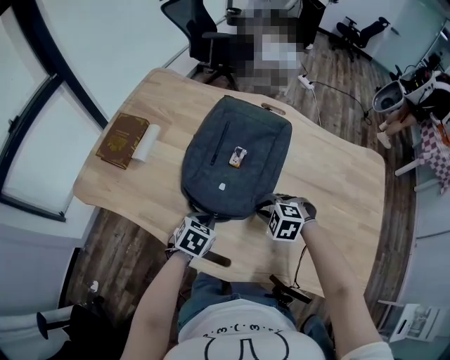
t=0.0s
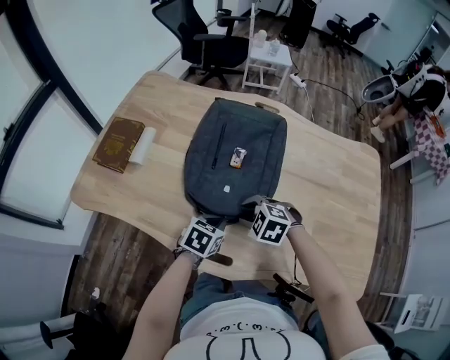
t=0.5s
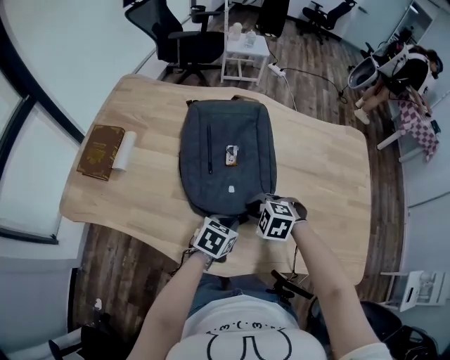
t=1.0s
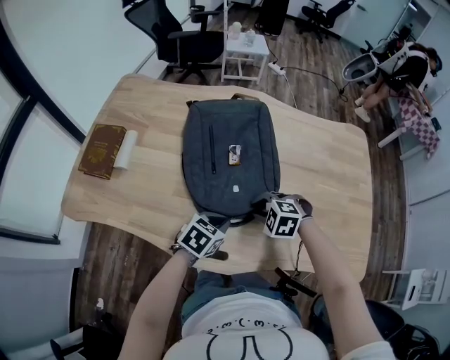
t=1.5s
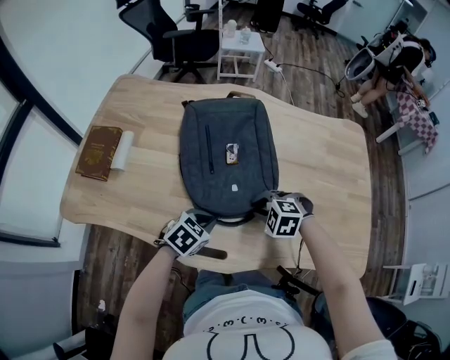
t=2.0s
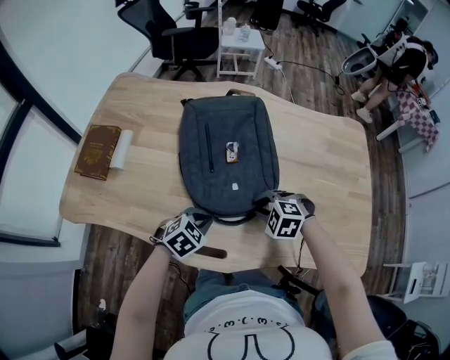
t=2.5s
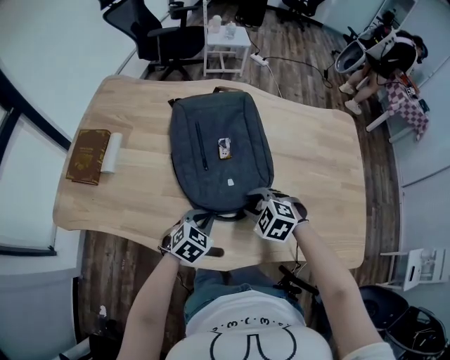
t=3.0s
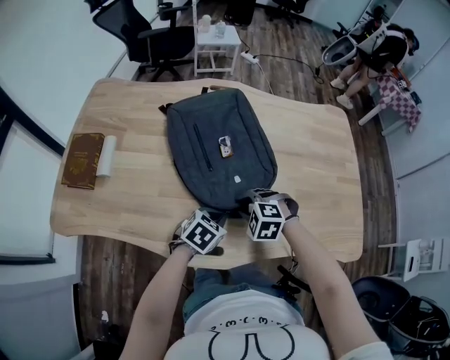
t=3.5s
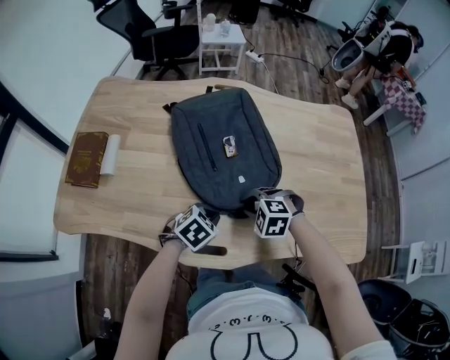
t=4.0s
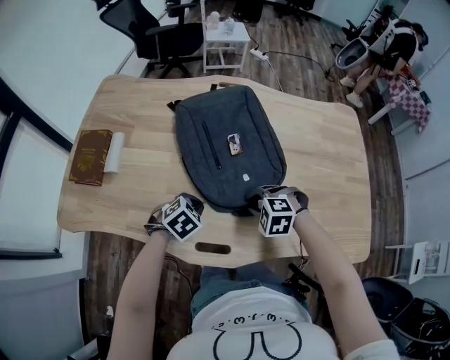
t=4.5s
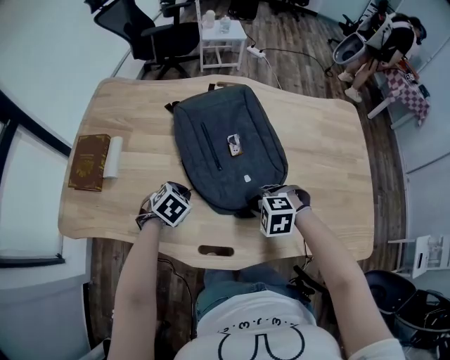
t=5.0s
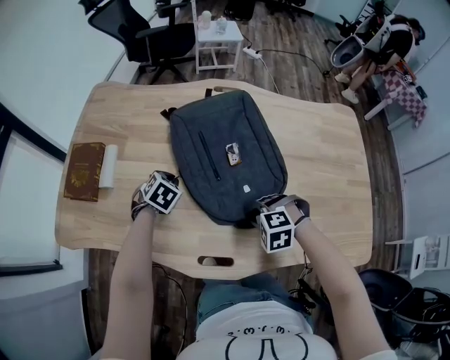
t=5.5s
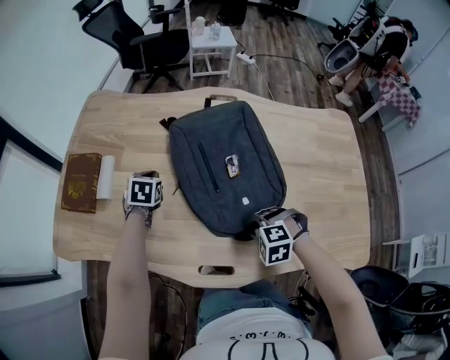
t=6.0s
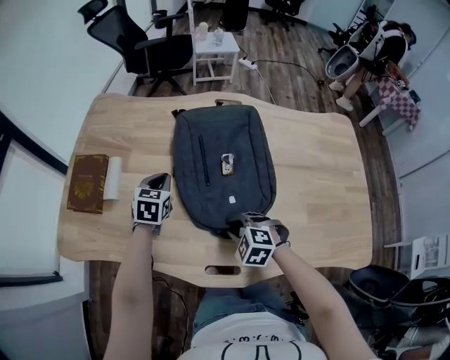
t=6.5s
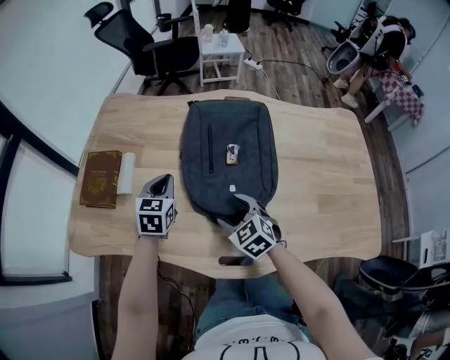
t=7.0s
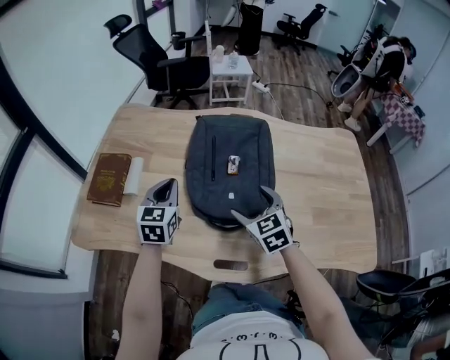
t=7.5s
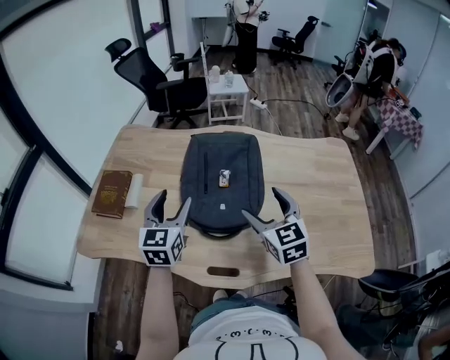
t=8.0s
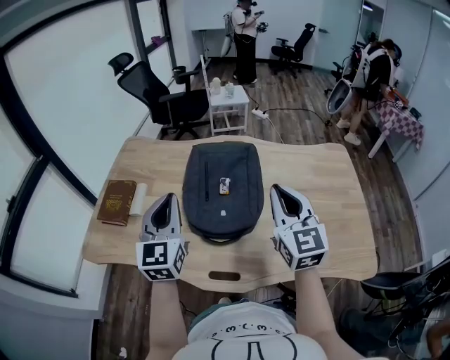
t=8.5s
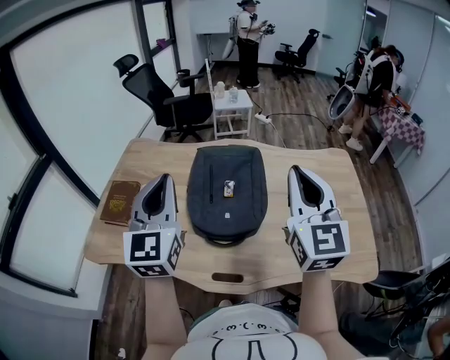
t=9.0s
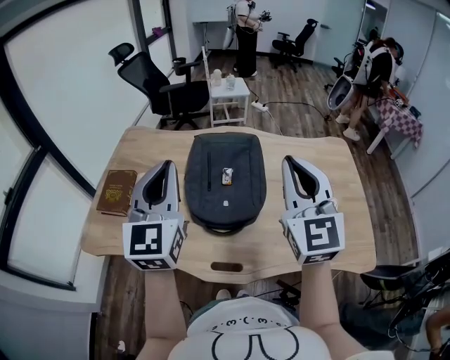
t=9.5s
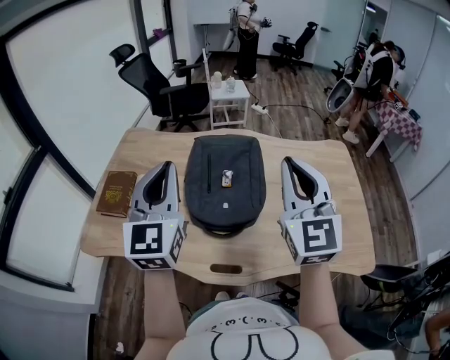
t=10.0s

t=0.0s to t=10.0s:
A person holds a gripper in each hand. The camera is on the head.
t=0.0s to t=2.0s: The right gripper moves some 5 cm to the left and comes back; the left gripper changes its angle by roughly 30 degrees.
t=2.0s to t=4.0s: The grippers move only a little.
t=4.0s to t=6.0s: The left gripper ends up about 30 cm from where it was, and turns by about 40 degrees.
t=6.0s to t=8.0s: Both grippers move upward, roughly 25 cm. The right gripper tilts its fingers about 60 degrees upward, and opens up, while the left gripper tilts its fingers some 40 degrees upward, and opens its fingers.
t=8.0s to t=10.0s: The two grippers go roughly 20 cm upward. The right gripper changes its angle by some 30 degrees, and closes its fingers, while the left gripper closes.

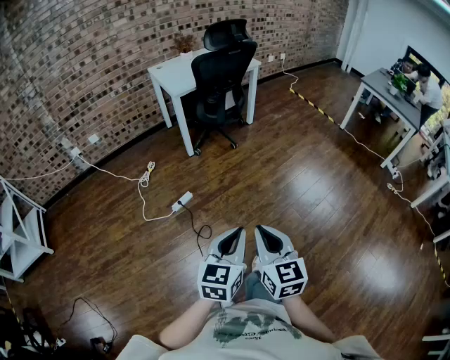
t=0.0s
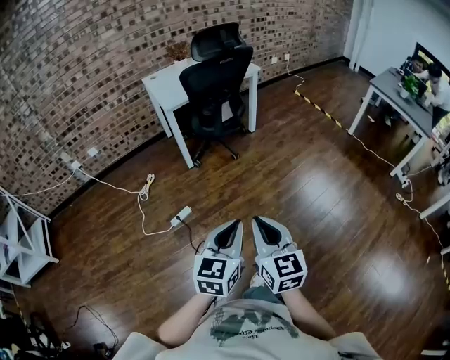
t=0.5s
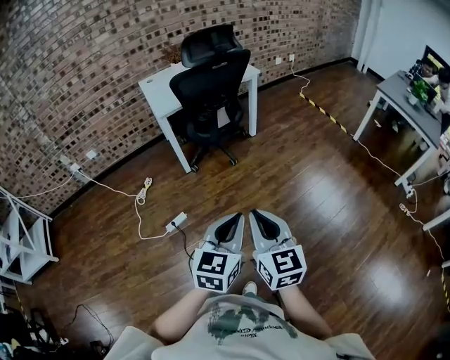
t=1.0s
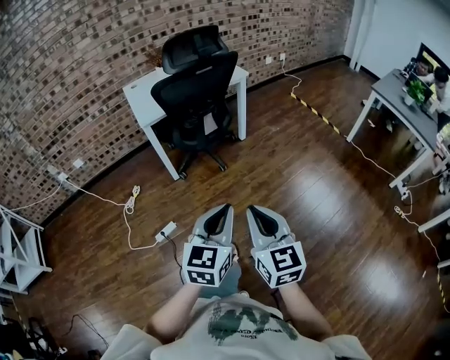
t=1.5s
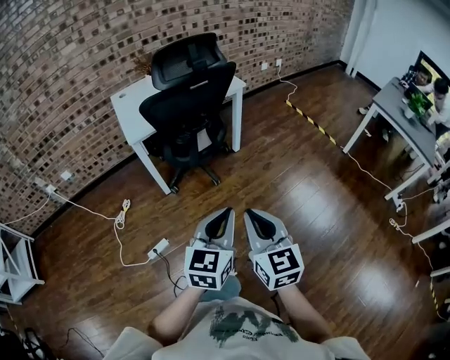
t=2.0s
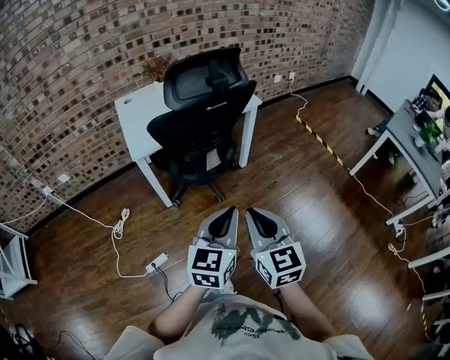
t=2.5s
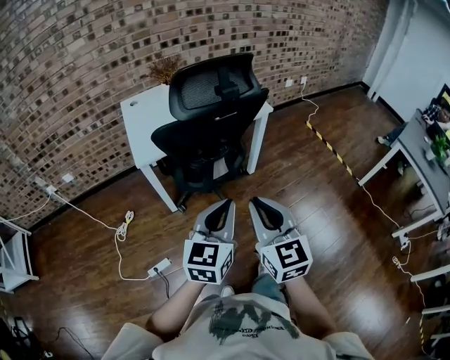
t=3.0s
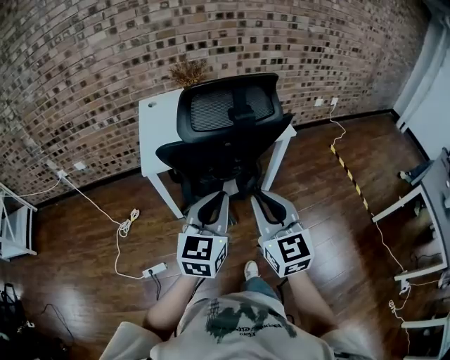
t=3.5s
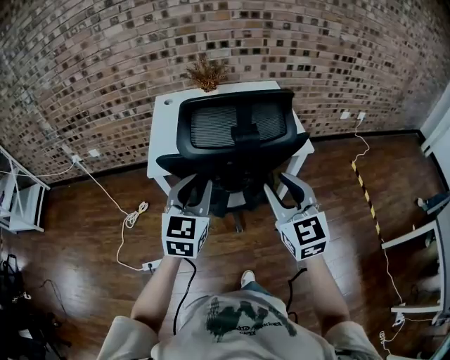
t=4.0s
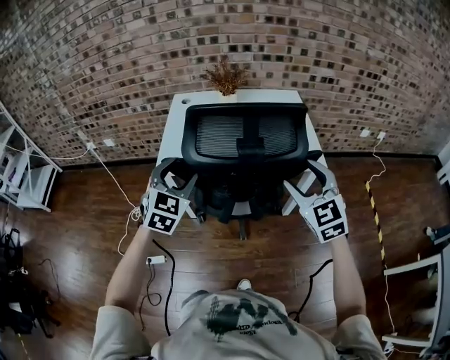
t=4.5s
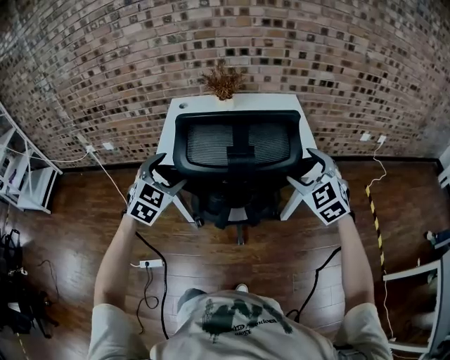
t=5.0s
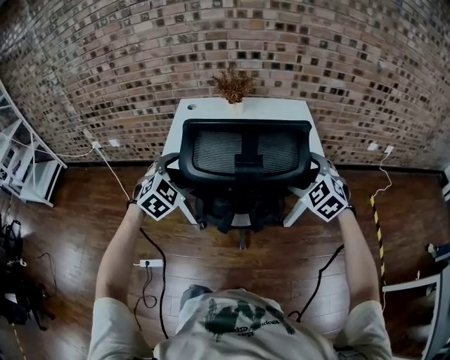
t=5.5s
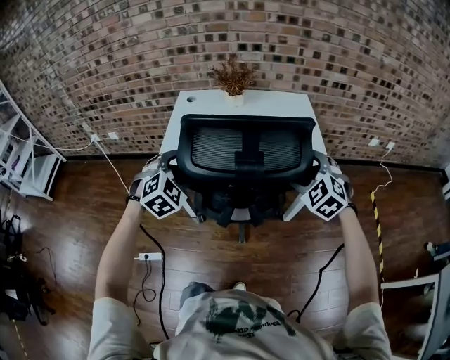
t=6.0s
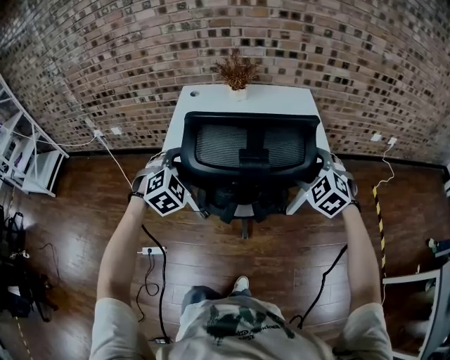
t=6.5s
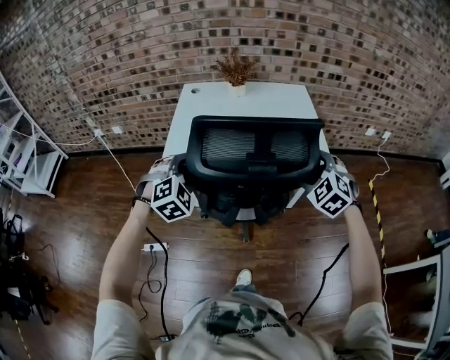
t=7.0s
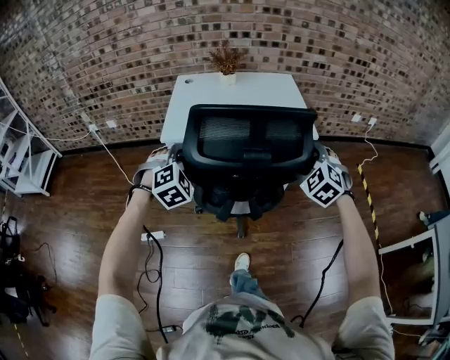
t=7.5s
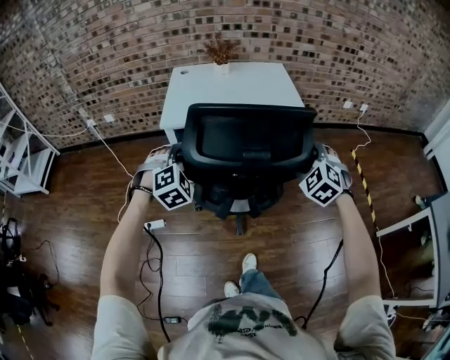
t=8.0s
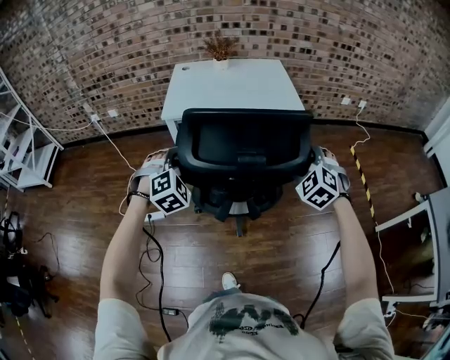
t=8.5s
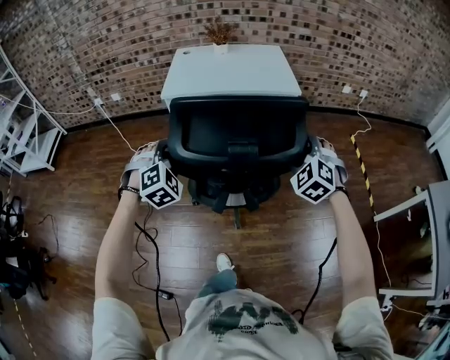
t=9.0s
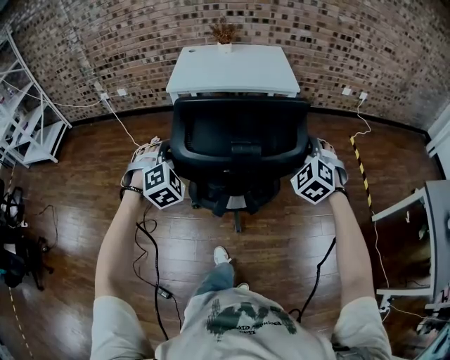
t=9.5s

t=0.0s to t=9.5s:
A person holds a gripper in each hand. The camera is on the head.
t=0.0s to t=2.0s: The two grippers travel together, forward, some 50 cm.
t=2.0s to t=4.0s: Both grippers are carried some 50 cm. The right gripper turns by about 30 degrees, while the left gripper rotates roughly 30 degrees.
t=4.0s to t=5.5s: The right gripper goes about 20 cm forward, to the right and downward, turns by some 40 degrees, and opens. Meanwhile the left gripper heads forward, downward and to the left, covering about 15 cm, swivels approximately 40 degrees, and opens its fingers.
t=5.5s to t=7.5s: Both grippers move backward, some 15 cm. The left gripper closes up.
t=7.5s to t=9.5s: Both grippers travel together backward, approximately 30 cm.

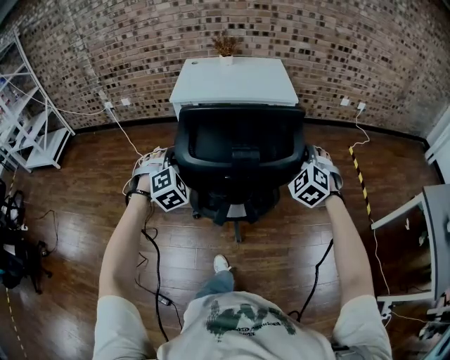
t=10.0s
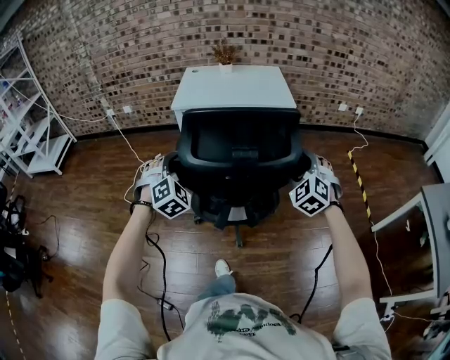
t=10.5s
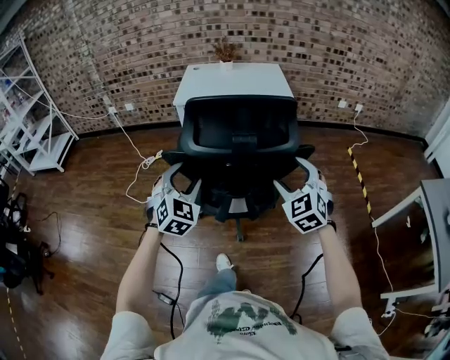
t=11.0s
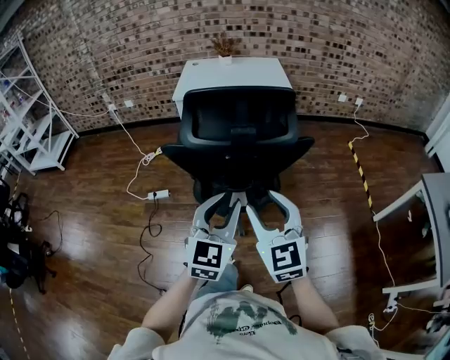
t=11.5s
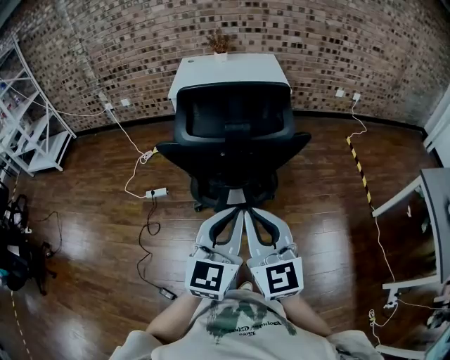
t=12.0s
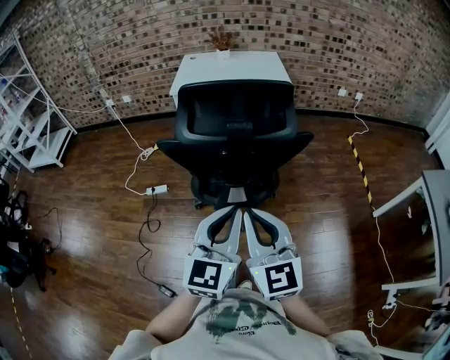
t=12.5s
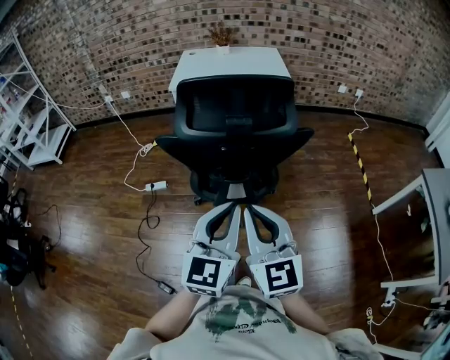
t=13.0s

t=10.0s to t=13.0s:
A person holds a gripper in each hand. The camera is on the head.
t=10.0s to t=11.5s: The left gripper is displaced backward and to the right by about 25 cm, and rolls counterclockwise, seen from behind, by some 50 degrees. Meanwhile the right gripper is displaced backward and to the left by about 25 cm, and turns by approximately 50 degrees.
t=11.5s to t=13.0s: The right gripper closes; the left gripper changes place by some 5 cm.

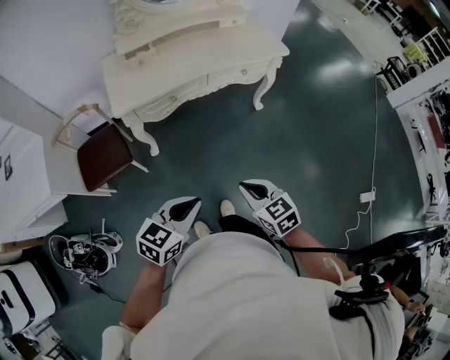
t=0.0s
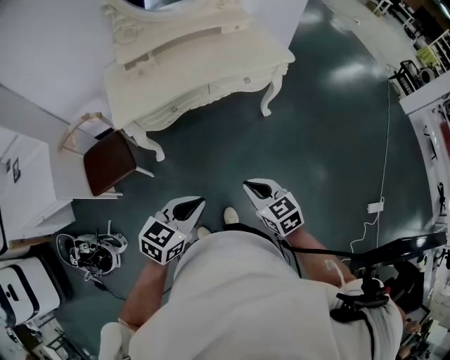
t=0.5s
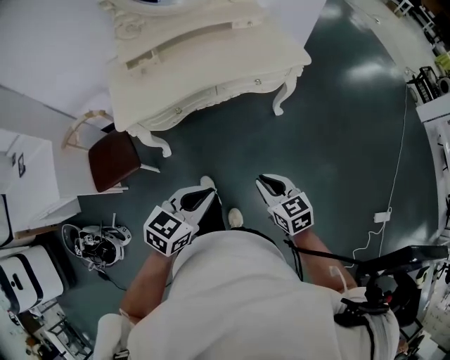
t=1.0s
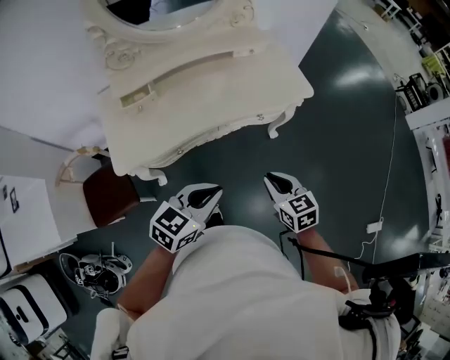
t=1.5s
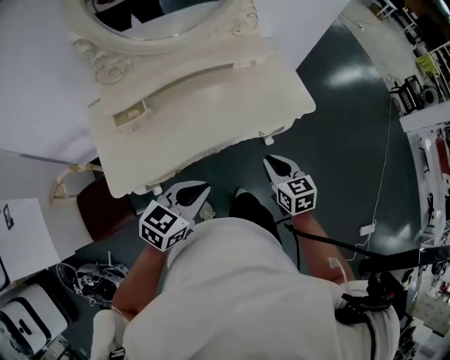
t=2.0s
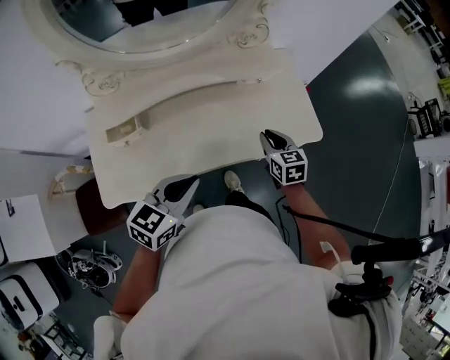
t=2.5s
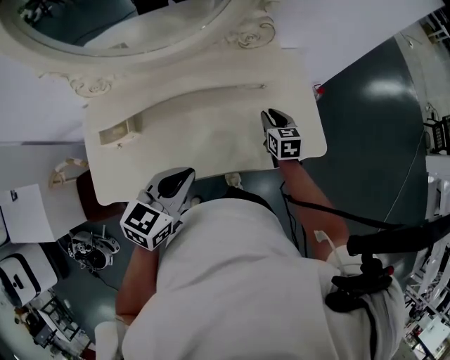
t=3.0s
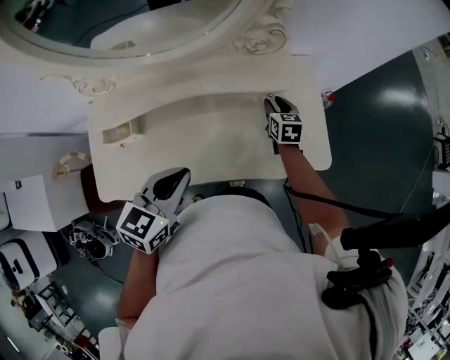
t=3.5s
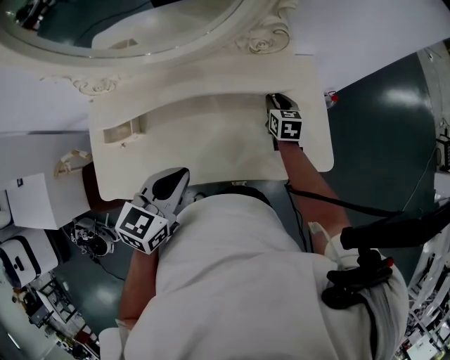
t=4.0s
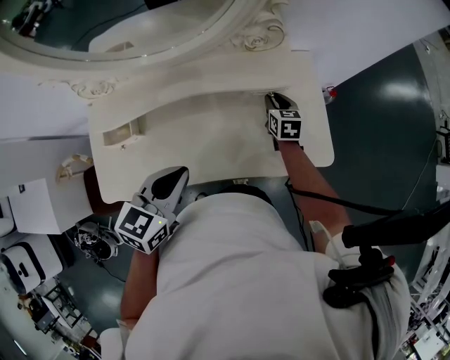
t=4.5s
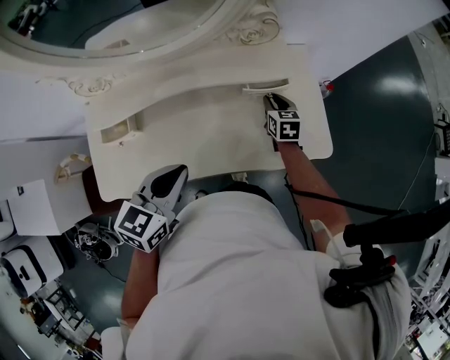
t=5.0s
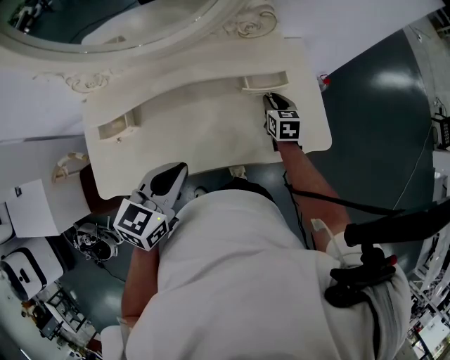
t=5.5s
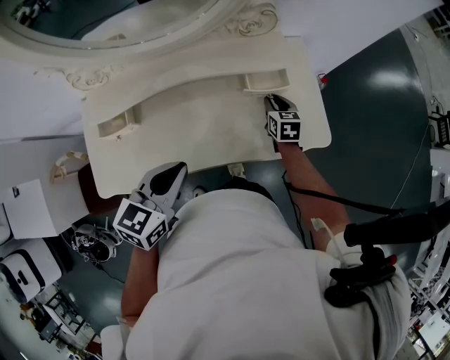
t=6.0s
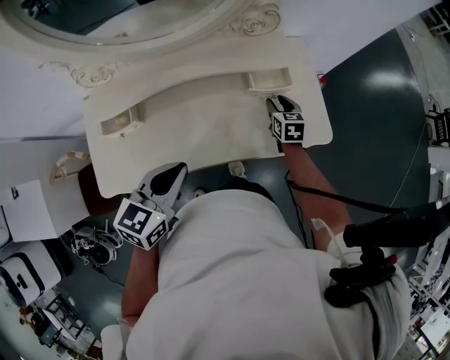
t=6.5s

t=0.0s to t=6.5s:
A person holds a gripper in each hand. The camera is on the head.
t=0.0s to t=2.0s: The two grippers travel together, forward, roughly 50 cm.
t=2.0s to t=4.5s: The right gripper goes some 50 cm forward; the left gripper is displaced forward by approximately 25 cm, and changes its angle by some 30 degrees.
t=4.5s to t=6.5s: The two grippers go about 5 cm backward.
